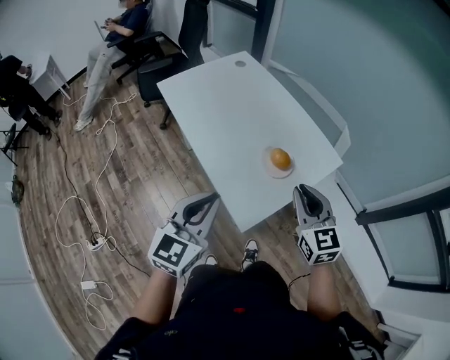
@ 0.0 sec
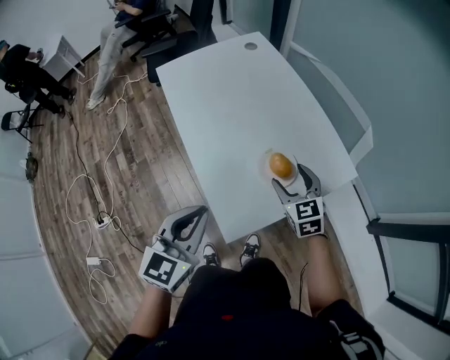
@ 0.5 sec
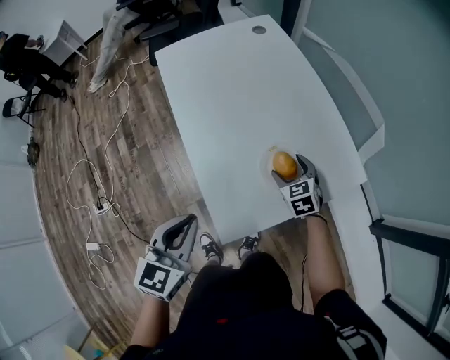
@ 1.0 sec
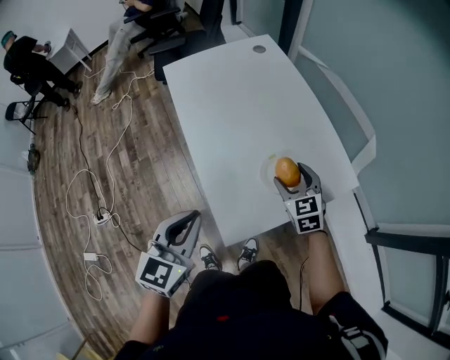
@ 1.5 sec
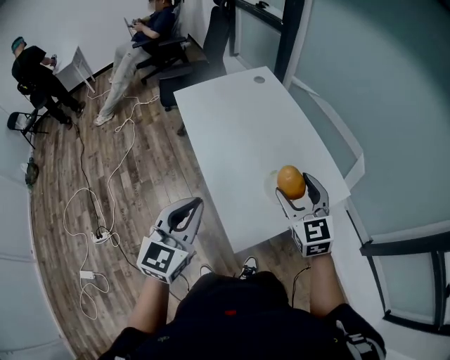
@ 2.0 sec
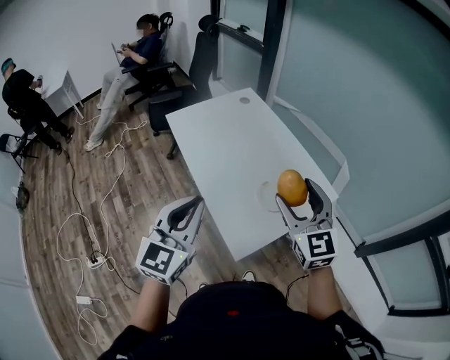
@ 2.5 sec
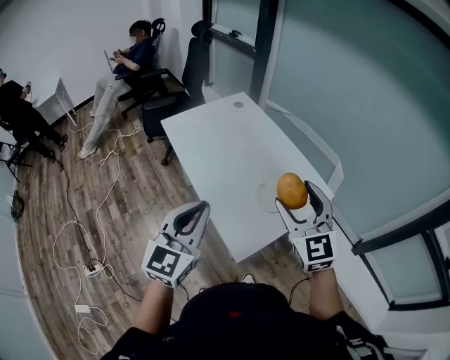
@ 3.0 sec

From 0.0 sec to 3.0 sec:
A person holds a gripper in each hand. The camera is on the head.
From 0.0 sec to 1.5 sec: The right gripper is displaced forward and downward by some 25 cm, rotates approximately 20 degrees, and opens its fingers, while the left gripper is displaced downward and forward by approximately 10 cm.
From 1.5 sec to 3.0 sec: The right gripper shifts approximately 30 cm upward and backward, and swivels roughly 30 degrees; the left gripper moves upward and to the left, some 15 cm, and swivels roughly 20 degrees.

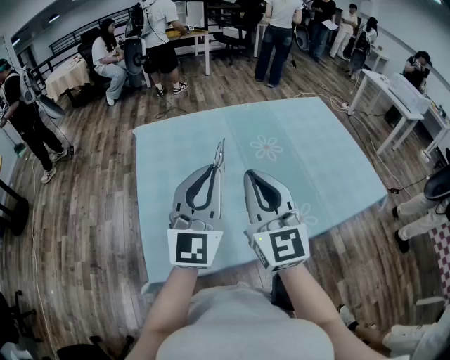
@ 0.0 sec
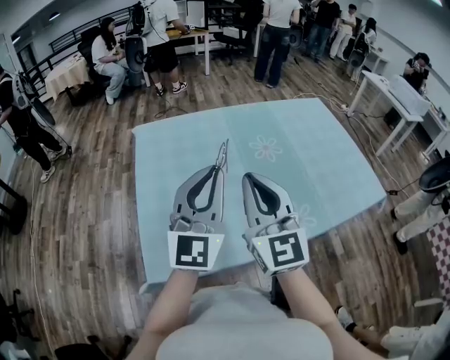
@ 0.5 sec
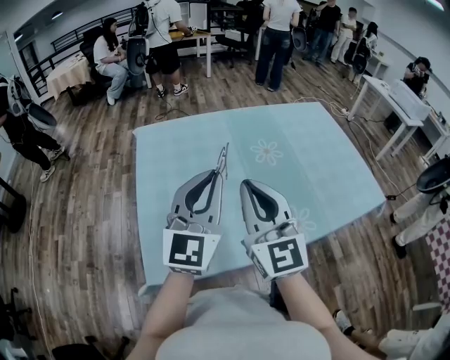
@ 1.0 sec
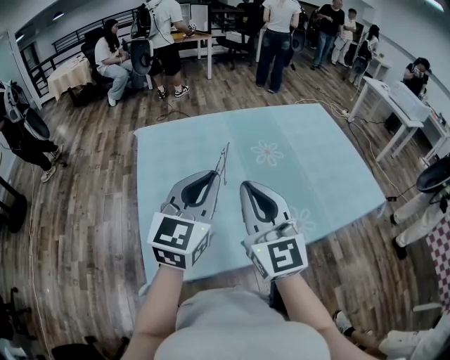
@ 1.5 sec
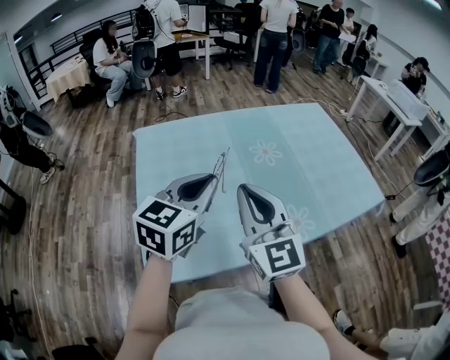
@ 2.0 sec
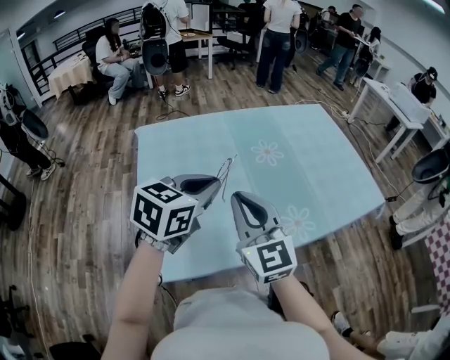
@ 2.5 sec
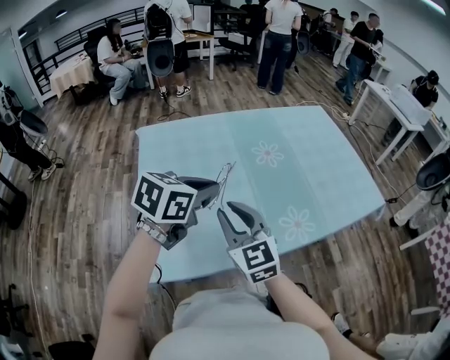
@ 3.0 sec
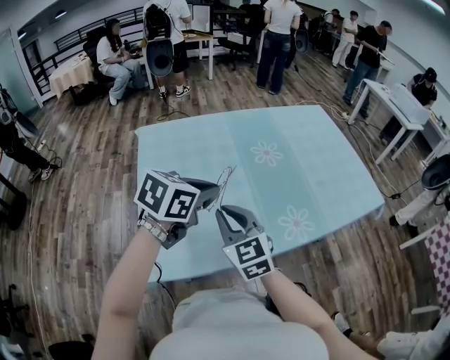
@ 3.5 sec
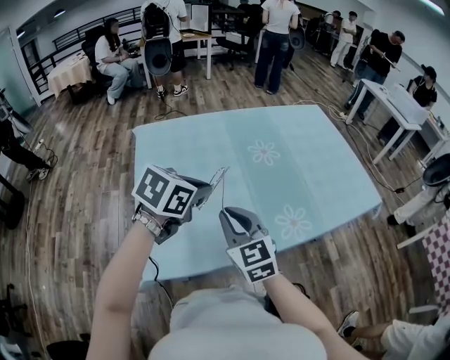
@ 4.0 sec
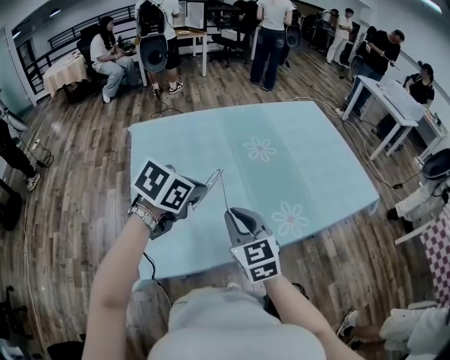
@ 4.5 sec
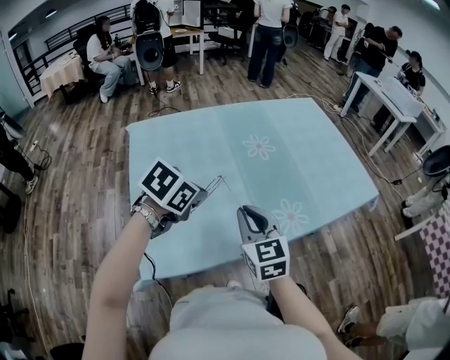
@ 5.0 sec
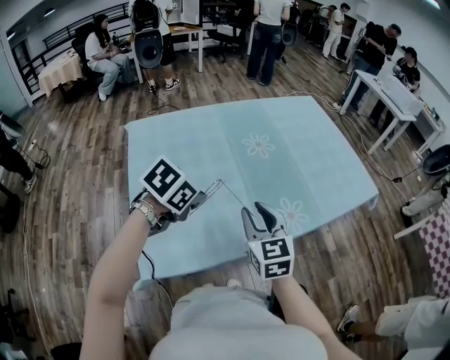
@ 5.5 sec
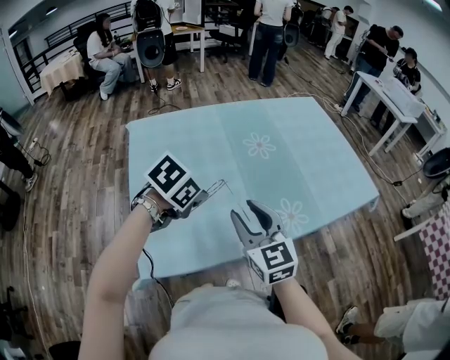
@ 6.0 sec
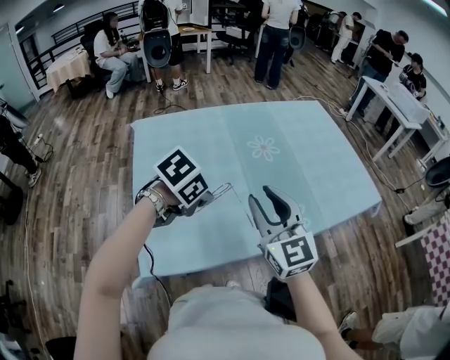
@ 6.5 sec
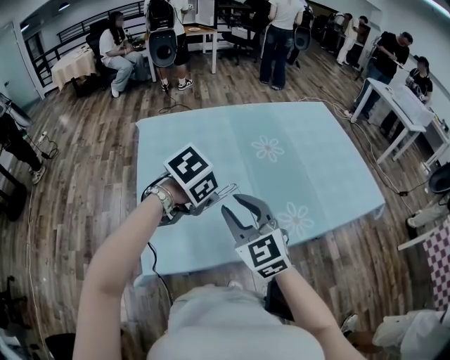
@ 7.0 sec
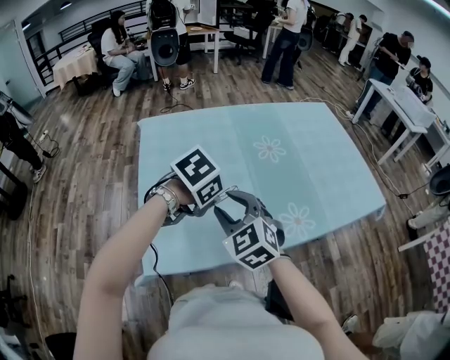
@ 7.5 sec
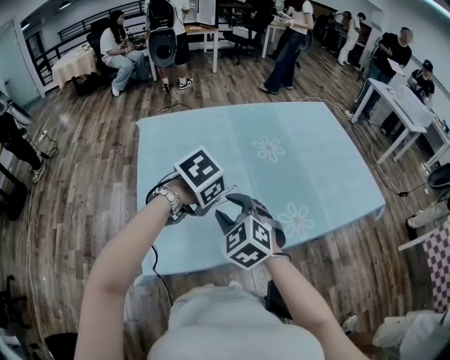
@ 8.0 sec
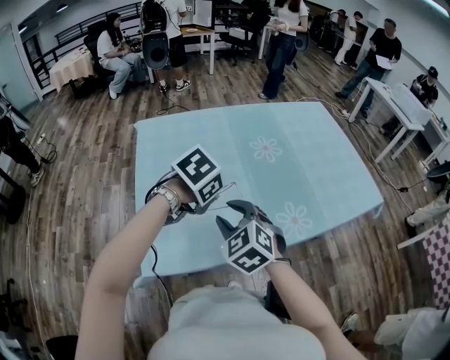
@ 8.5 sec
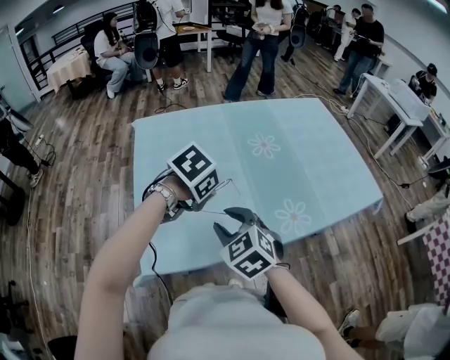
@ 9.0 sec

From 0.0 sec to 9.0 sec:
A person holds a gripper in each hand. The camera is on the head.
From 0.0 sec to 2.0 sec: The left gripper turns by about 40 degrees.
From 2.0 sec to 4.5 sec: Both grippers travel together downward, roughly 10 cm. The right gripper changes its angle by roughly 30 degrees. Meanwhile the left gripper points its fingers approximately 30 degrees further downward.
From 4.5 sec to 7.0 sec: The left gripper turns by roughly 20 degrees.
From 7.0 sec to 9.0 sec: The right gripper shifts about 5 cm downward, and swivels some 20 degrees.

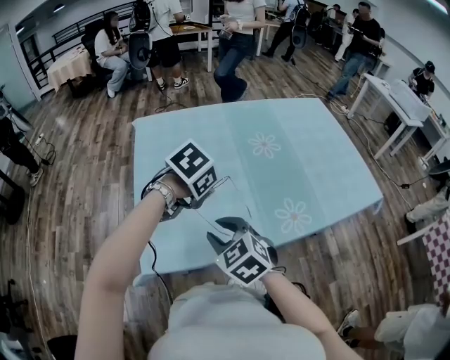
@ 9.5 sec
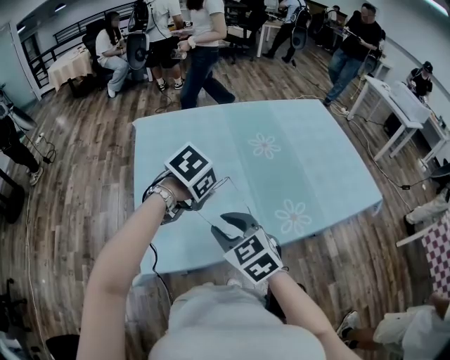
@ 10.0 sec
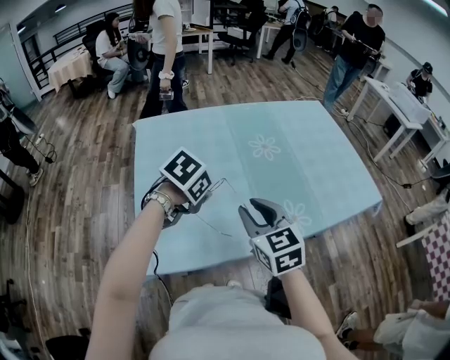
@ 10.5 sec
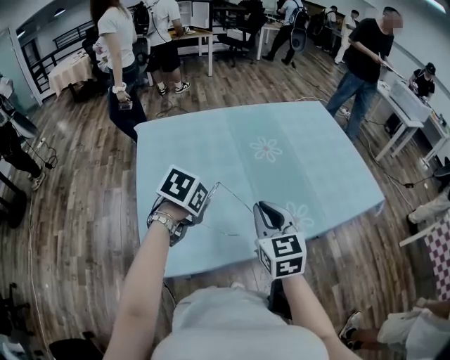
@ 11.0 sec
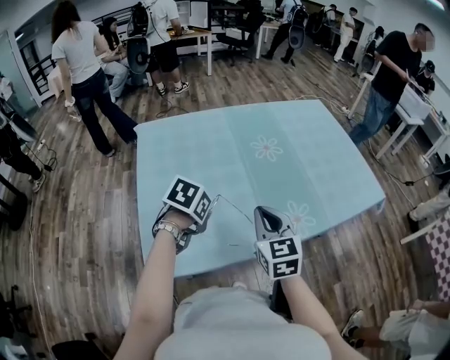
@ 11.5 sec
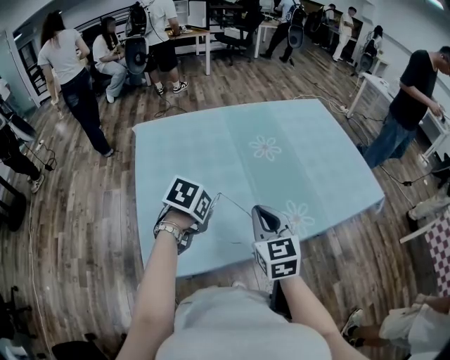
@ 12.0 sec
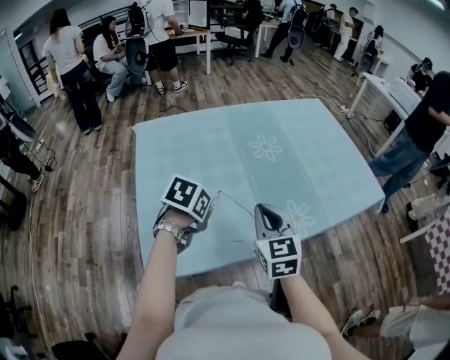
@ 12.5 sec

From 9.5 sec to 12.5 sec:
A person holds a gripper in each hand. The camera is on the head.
From 9.5 sec to 11.0 sec: The right gripper travels to the right, forward and upward by roughly 15 cm, rotates some 40 degrees, and closes up.
From 11.0 sec to 12.5 sec: The grippers stay close to where they were, moving slightly.

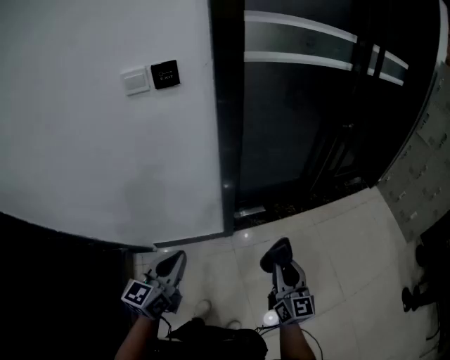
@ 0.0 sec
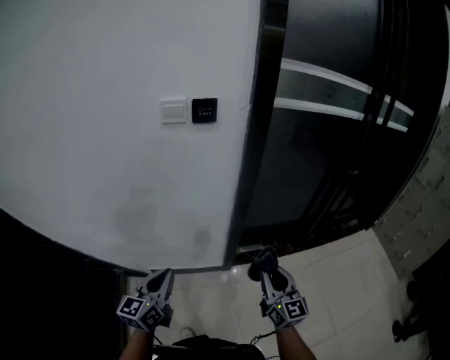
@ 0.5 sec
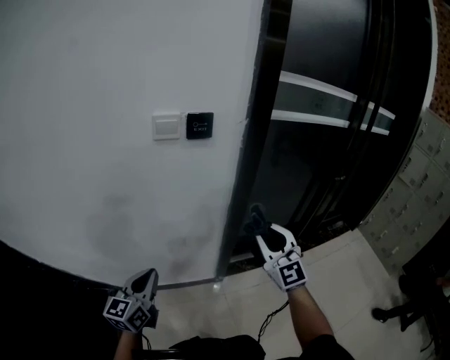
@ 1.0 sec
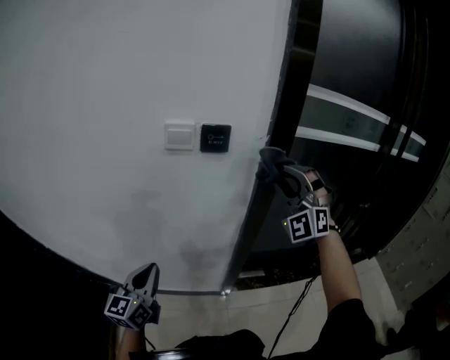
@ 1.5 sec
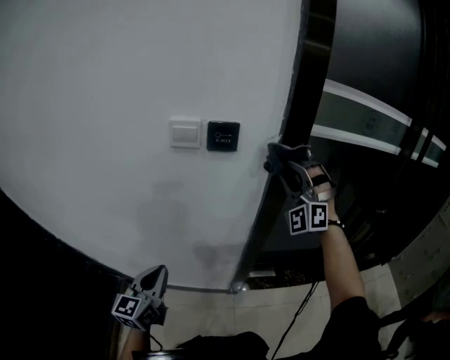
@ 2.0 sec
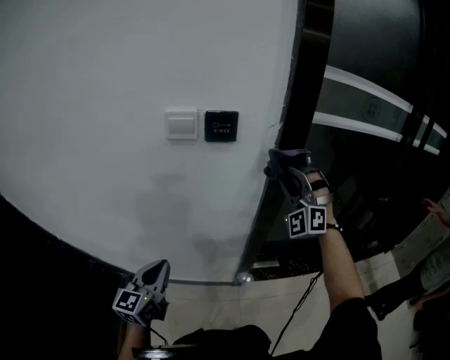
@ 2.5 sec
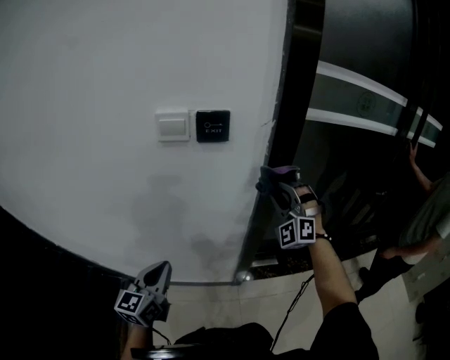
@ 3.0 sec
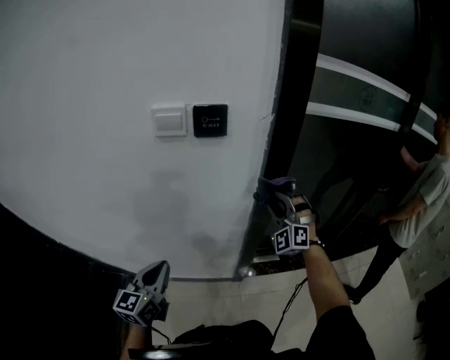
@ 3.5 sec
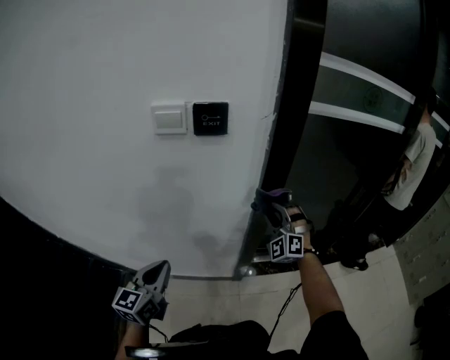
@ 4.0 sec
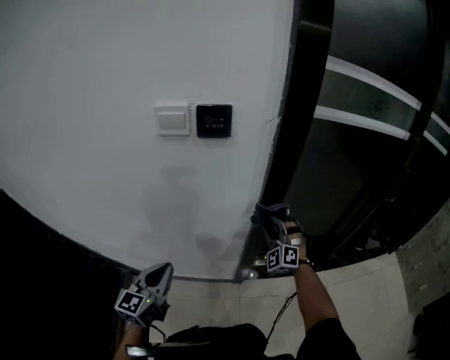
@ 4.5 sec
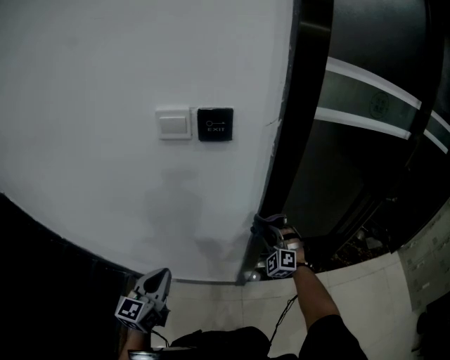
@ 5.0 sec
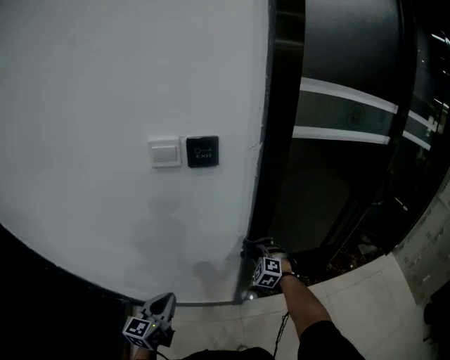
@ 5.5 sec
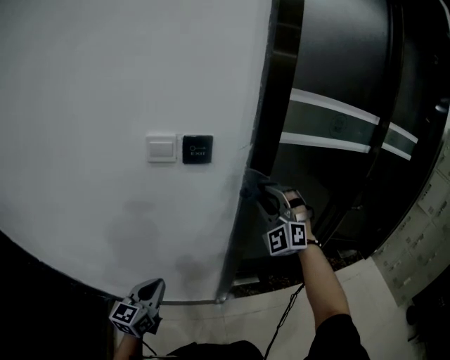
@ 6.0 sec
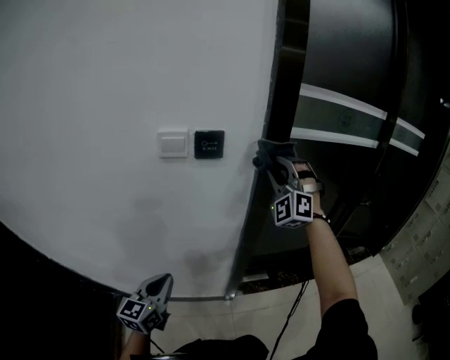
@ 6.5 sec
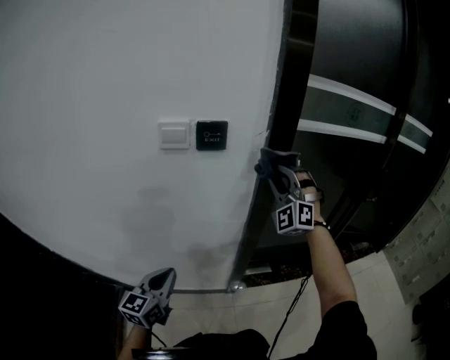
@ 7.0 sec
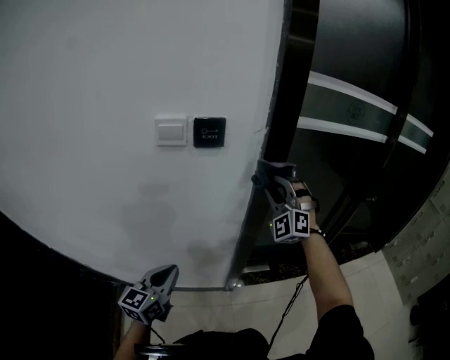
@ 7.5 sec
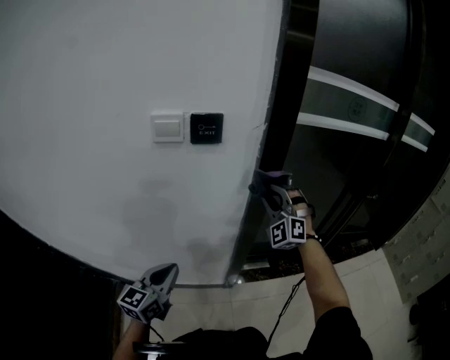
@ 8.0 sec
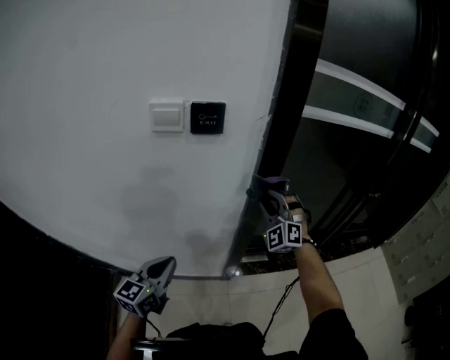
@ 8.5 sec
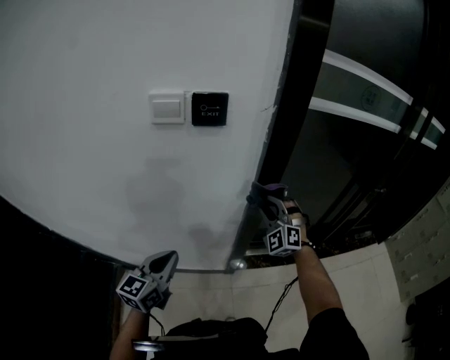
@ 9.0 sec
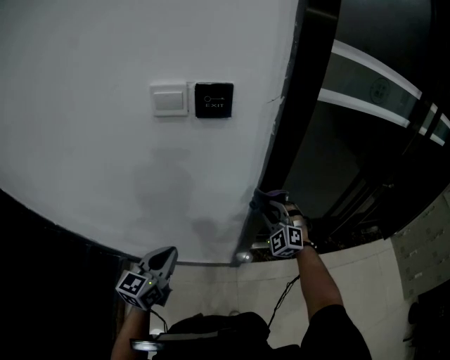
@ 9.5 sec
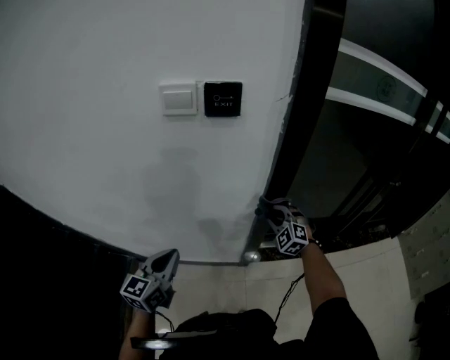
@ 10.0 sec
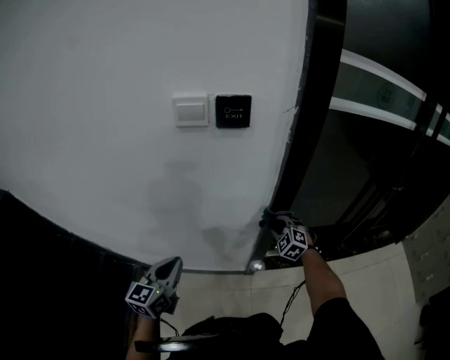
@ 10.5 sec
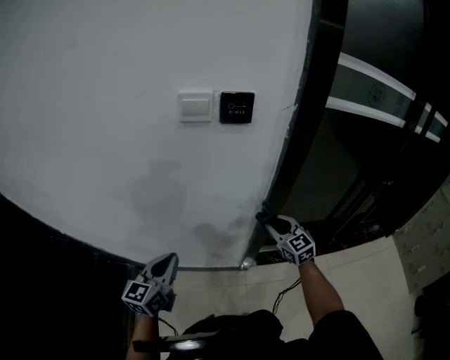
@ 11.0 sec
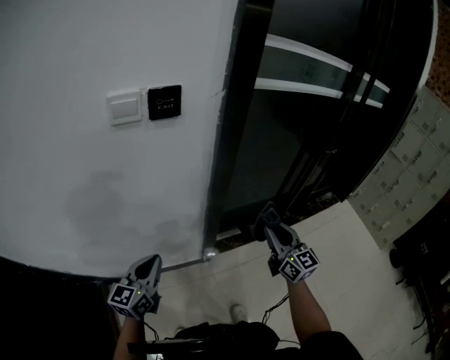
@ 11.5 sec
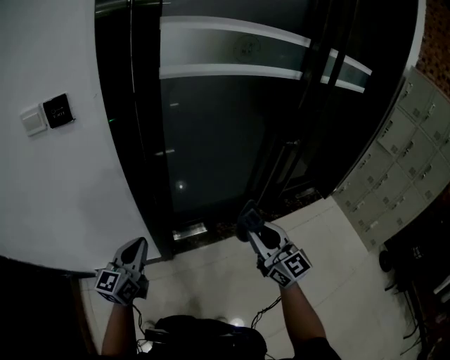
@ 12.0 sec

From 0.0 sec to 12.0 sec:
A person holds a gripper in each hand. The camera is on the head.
From 0.0 sec to 2.0 sec: The left gripper goes roughly 20 cm forward and to the left, while the right gripper heads forward and upward, covering some 50 cm, and rolls counterclockwise, seen from behind, by some 100 degrees.
From 2.0 sec to 4.0 sec: The right gripper goes about 25 cm downward, and rotates roughly 20 degrees.
From 4.0 sec to 6.0 sec: The right gripper heads upward, covering some 20 cm.
From 6.0 sec to 8.0 sec: The right gripper goes some 10 cm downward.
From 8.0 sec to 10.0 sec: The right gripper moves downward, some 20 cm, and turns by approximately 30 degrees.
From 10.0 sec to 12.0 sec: The right gripper travels to the right, backward and upward by roughly 40 cm, and rolls clockwise, seen from behind, by about 50 degrees; the left gripper is displaced to the right by roughly 30 cm.
